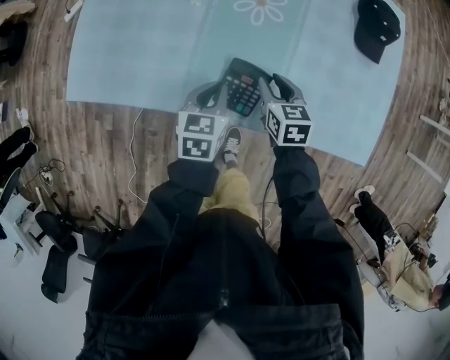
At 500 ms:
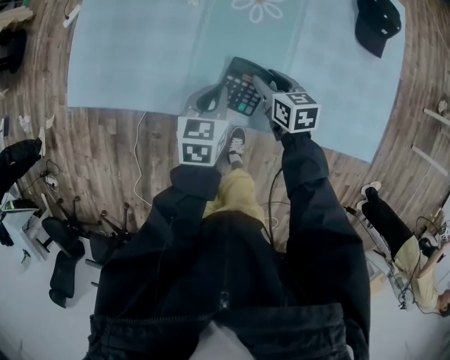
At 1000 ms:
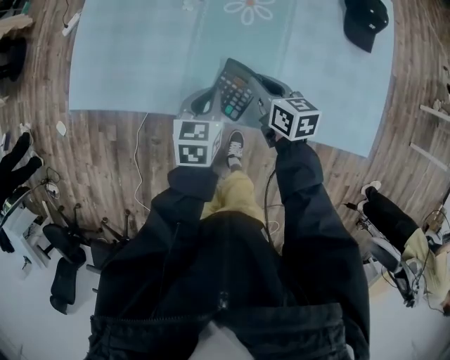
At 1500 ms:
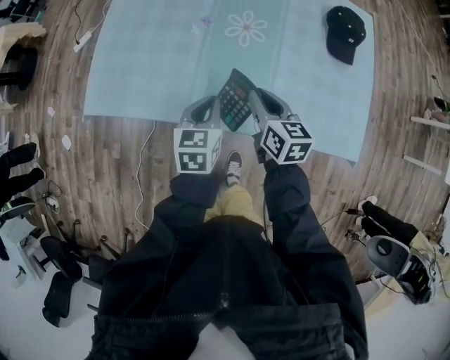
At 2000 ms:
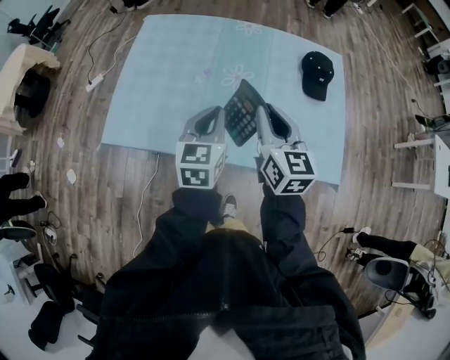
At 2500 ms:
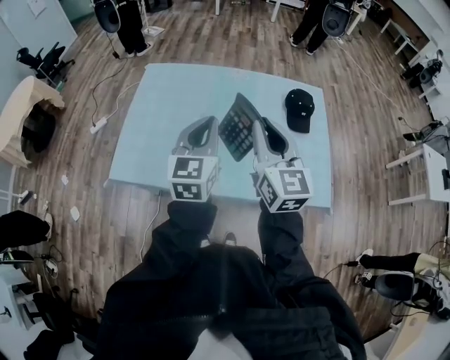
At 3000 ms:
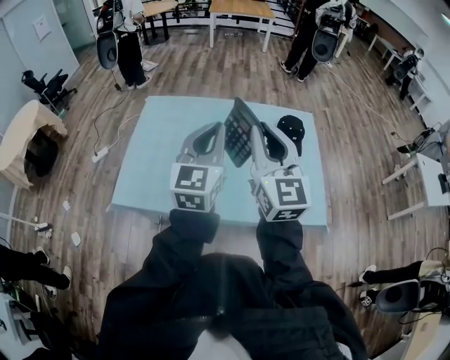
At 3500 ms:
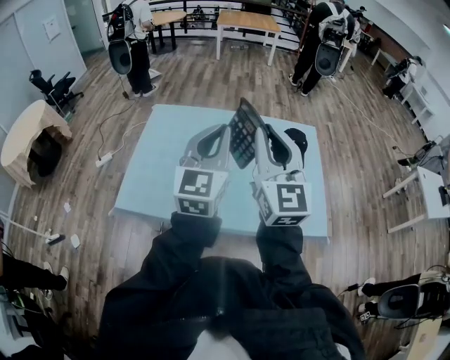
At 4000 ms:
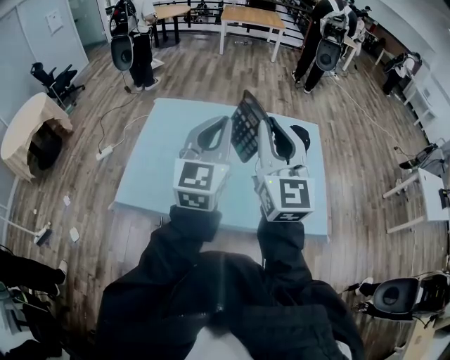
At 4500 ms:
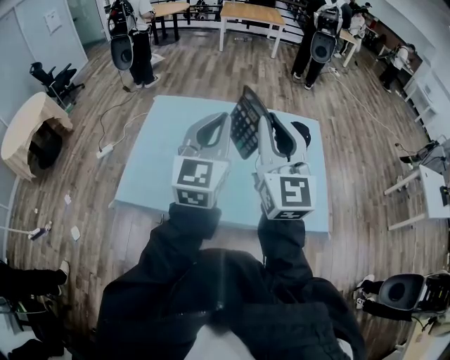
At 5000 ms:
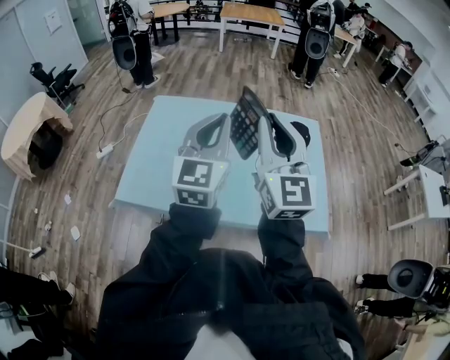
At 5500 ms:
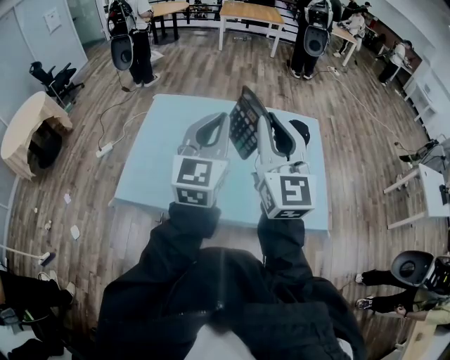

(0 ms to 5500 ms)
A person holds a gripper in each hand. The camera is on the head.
0 ms - 2000 ms: Both grippers move upward, about 30 cm. The left gripper rotates about 30 degrees, while the right gripper angles its fingers upward, by approximately 30 degrees.
2000 ms - 3500 ms: The two grippers go about 25 cm upward. The right gripper turns by approximately 30 degrees; the left gripper turns by approximately 30 degrees.
3500 ms - 5500 ms: The two grippers keep their place.

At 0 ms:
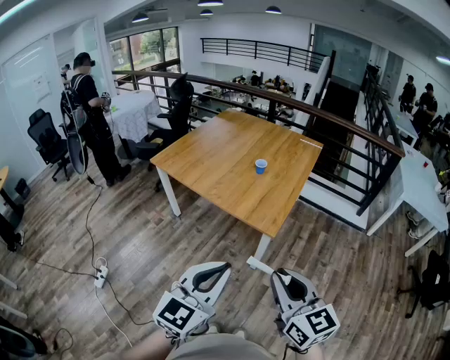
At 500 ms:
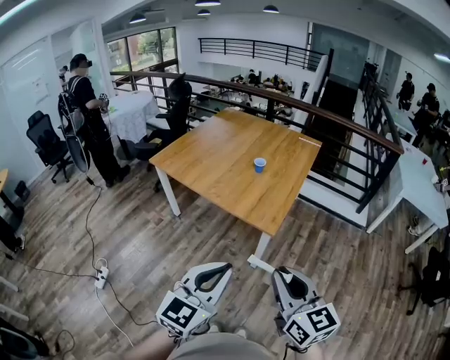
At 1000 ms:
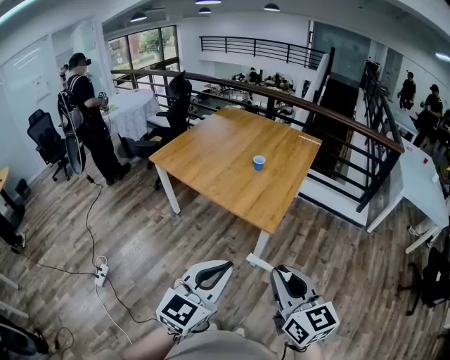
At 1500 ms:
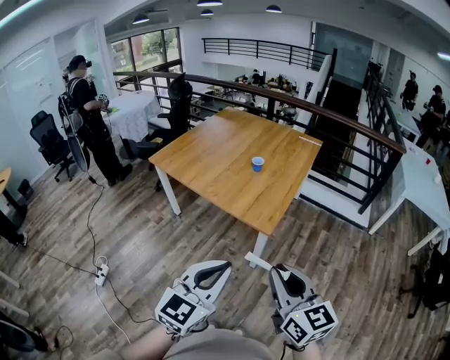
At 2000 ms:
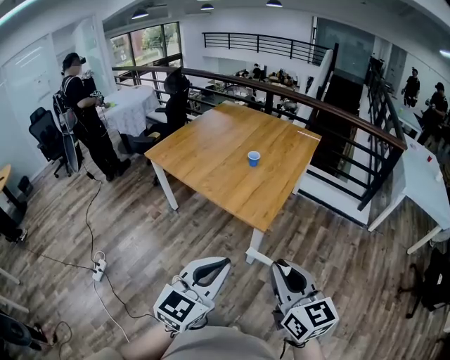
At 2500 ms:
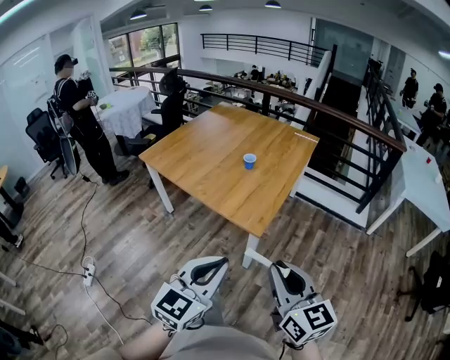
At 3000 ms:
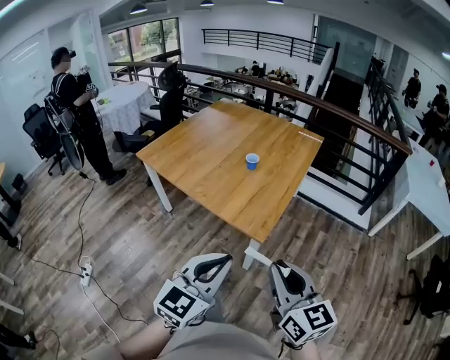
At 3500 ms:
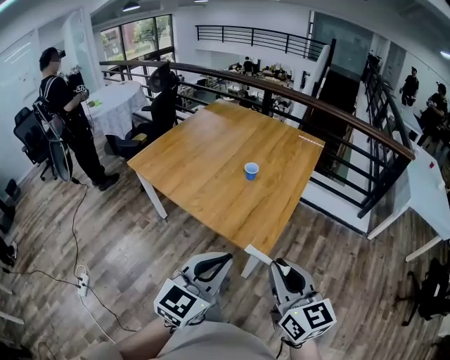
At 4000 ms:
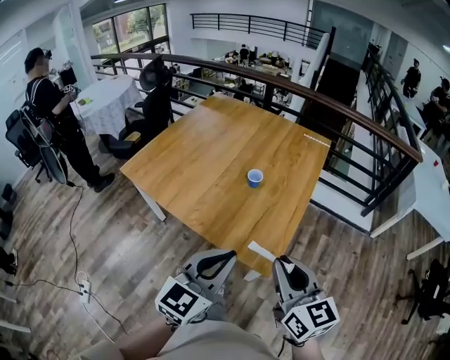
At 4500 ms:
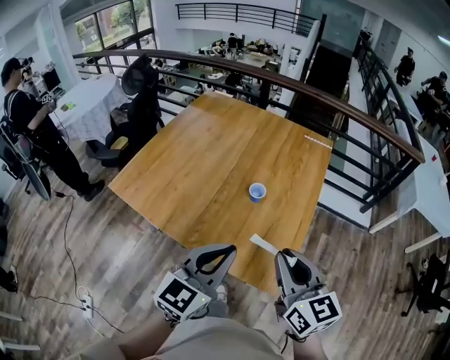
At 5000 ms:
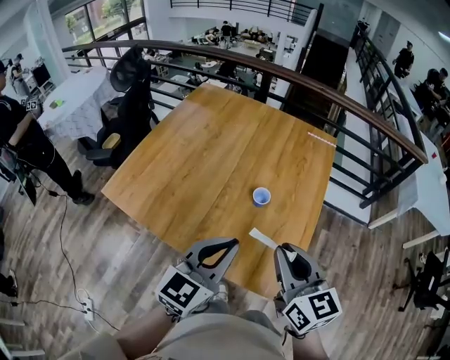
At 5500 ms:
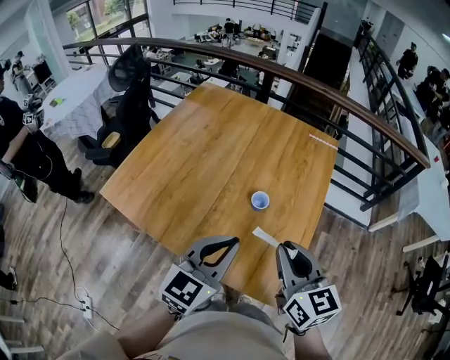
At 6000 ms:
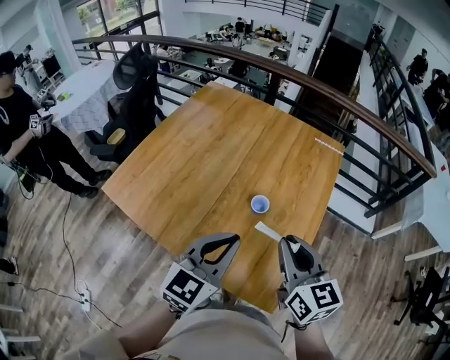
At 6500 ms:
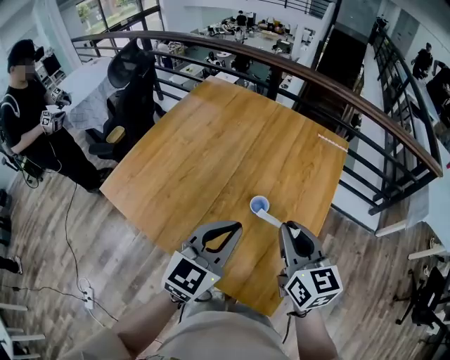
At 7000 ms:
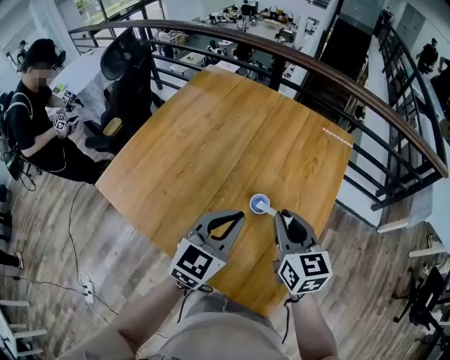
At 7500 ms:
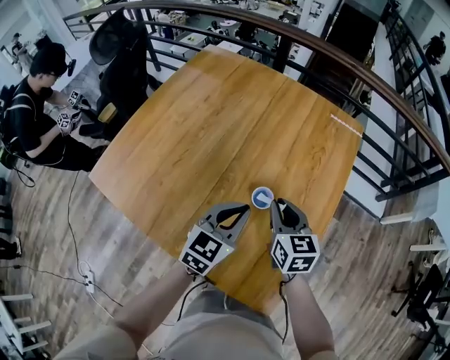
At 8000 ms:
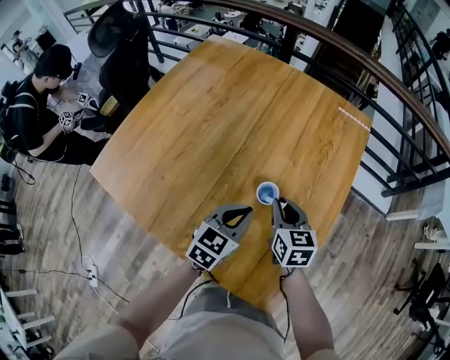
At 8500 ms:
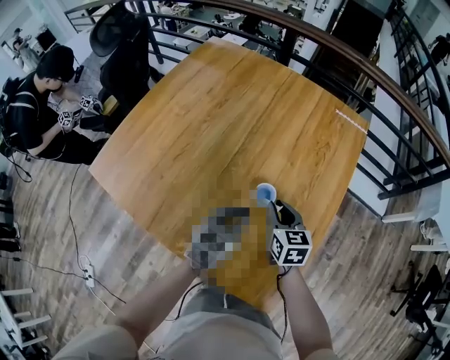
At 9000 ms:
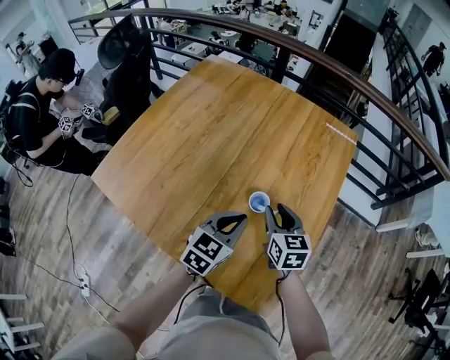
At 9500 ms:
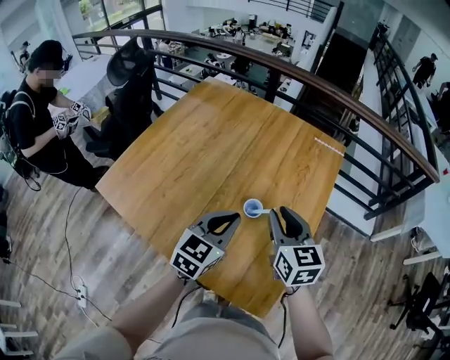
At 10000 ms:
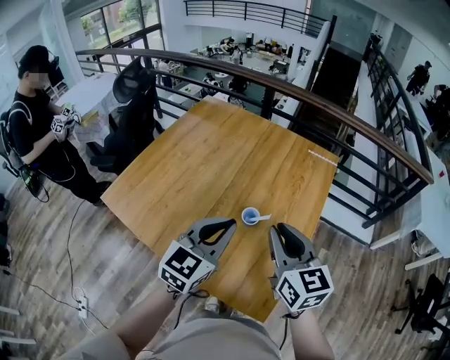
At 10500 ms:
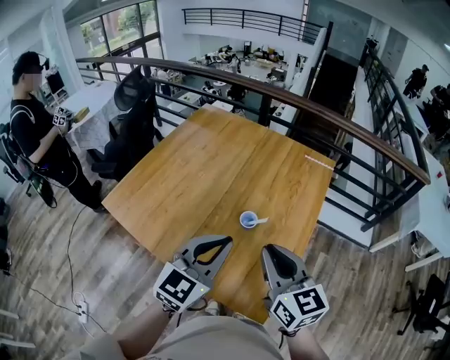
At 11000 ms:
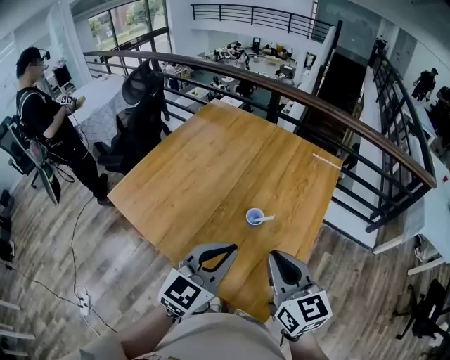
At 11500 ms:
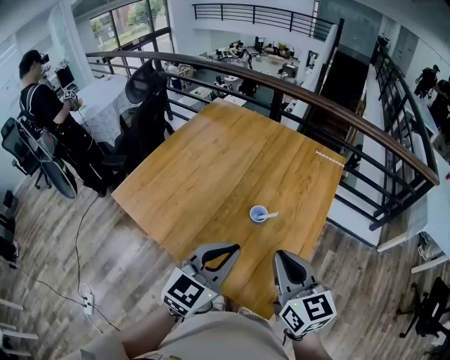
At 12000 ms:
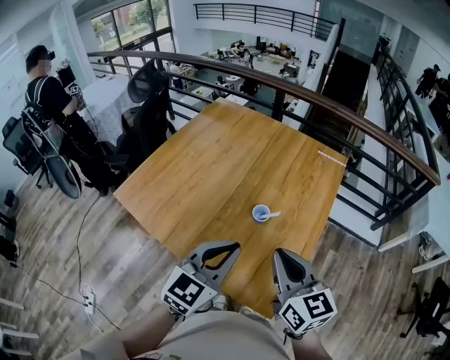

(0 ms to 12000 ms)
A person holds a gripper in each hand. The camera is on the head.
0 ms - 2000 ms: Both grippers move to the right, approximately 5 cm.
2000 ms - 4000 ms: Both grippers move forward, about 30 cm.
4000 ms - 6000 ms: The two grippers go roughly 25 cm forward.
6000 ms - 8000 ms: The two grippers go about 25 cm downward and forward.
8000 ms - 10000 ms: The two grippers go roughly 25 cm upward and backward. The left gripper changes its angle by some 20 degrees. The right gripper changes its angle by roughly 20 degrees.
10000 ms - 12000 ms: The grippers both shift backward by some 10 cm.

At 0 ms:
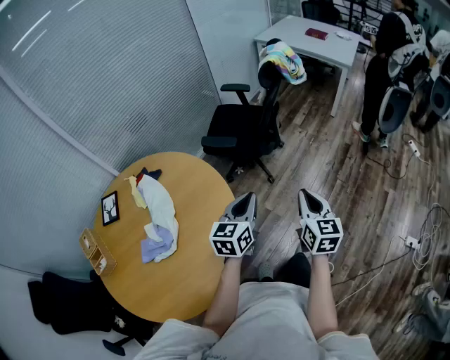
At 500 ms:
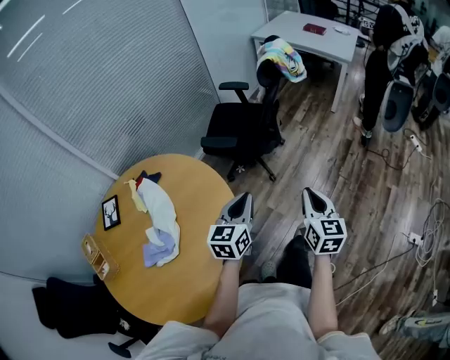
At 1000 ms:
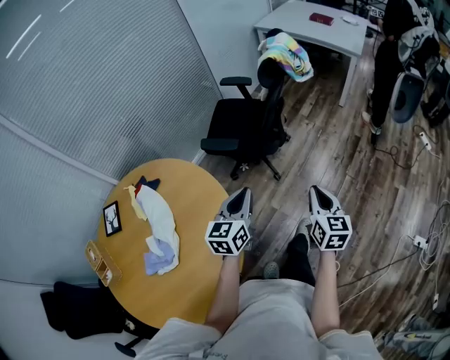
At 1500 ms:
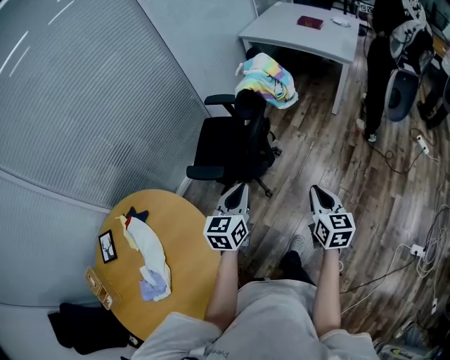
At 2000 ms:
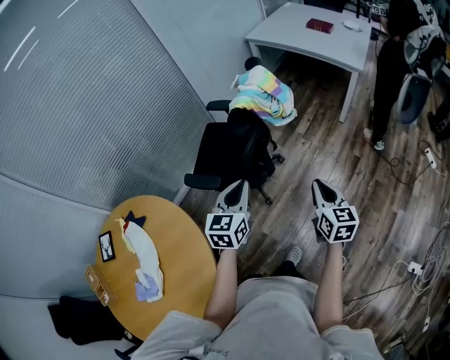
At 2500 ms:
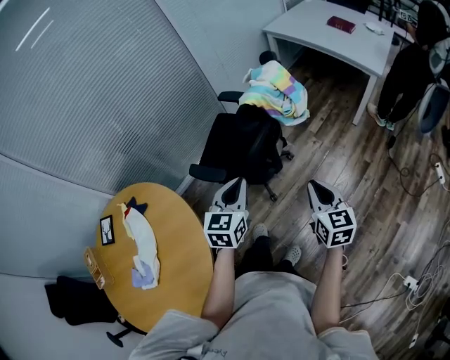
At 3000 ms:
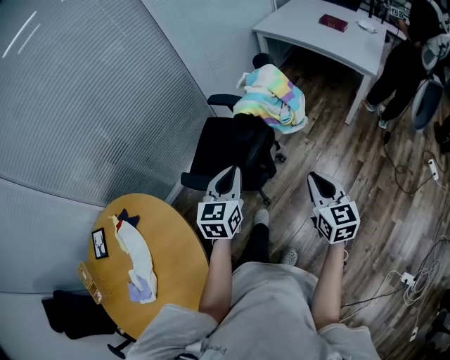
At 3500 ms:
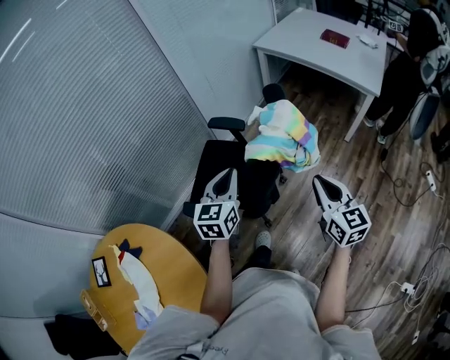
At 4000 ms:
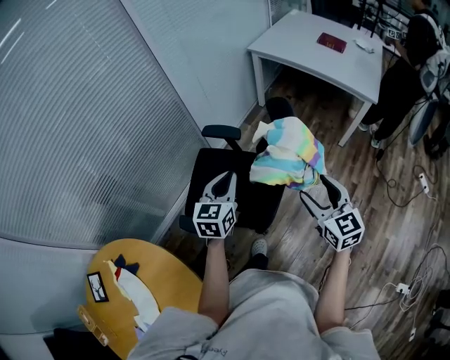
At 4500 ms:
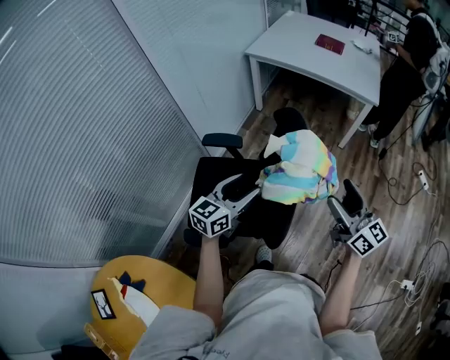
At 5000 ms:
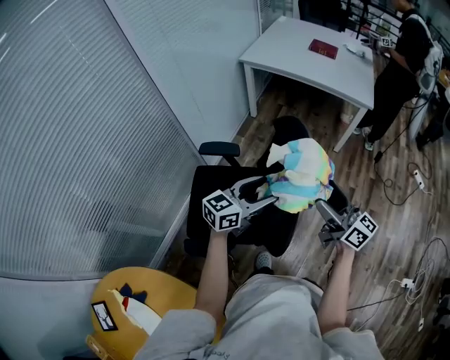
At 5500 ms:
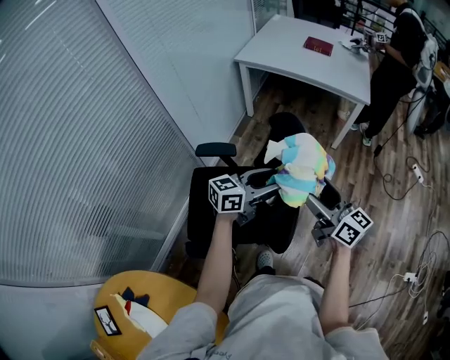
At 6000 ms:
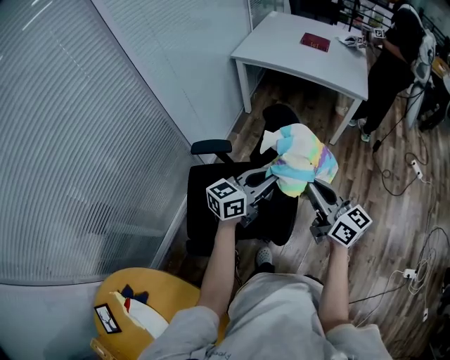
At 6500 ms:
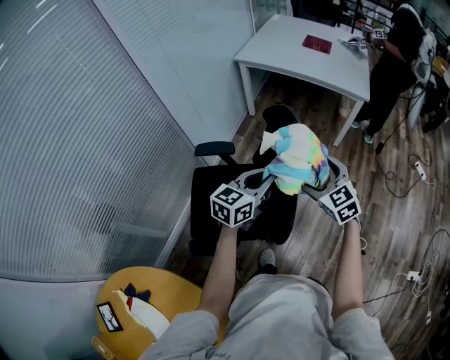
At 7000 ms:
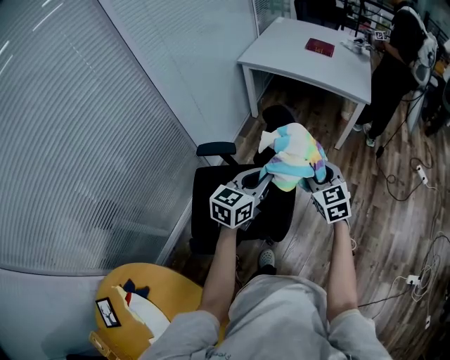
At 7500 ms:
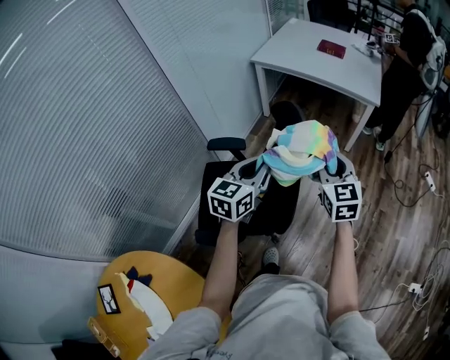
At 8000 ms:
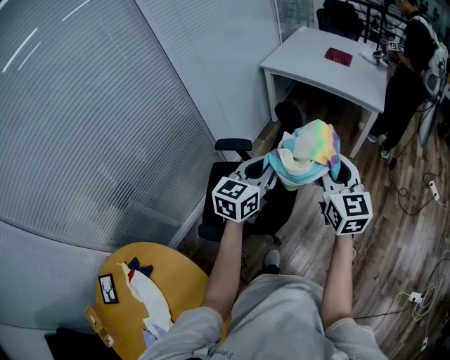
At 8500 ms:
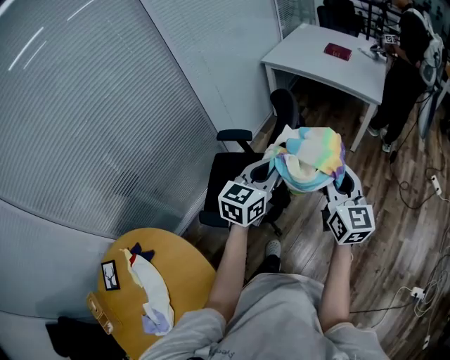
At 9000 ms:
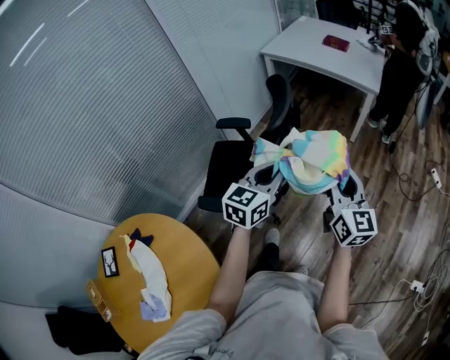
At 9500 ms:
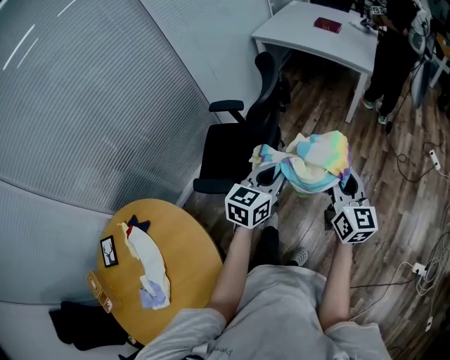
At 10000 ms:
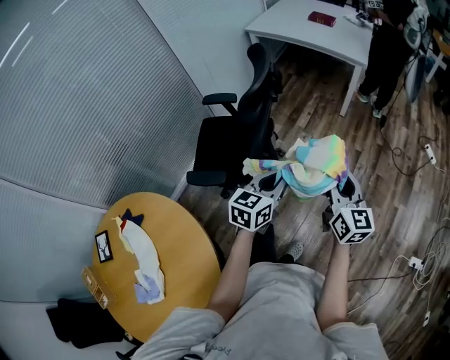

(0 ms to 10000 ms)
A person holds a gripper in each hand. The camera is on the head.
0 ms - 2000 ms: The right gripper heads forward and to the right, covering roughly 35 cm; the left gripper moves forward, approximately 35 cm.
2000 ms - 4000 ms: Both grippers travel together forward, roughly 25 cm. The right gripper opens.
4000 ms - 6000 ms: The right gripper swivels about 30 degrees, and closes its fingers. The left gripper changes place by approximately 10 cm, rotates roughly 50 degrees, and opens and closes again.
6000 ms - 8000 ms: The grippers both shift upward by approximately 10 cm. The left gripper rotates some 30 degrees. The right gripper rotates approximately 30 degrees, and opens, then closes again.
8000 ms - 10000 ms: Both grippers travel together backward, to the right and downward, approximately 30 cm.
